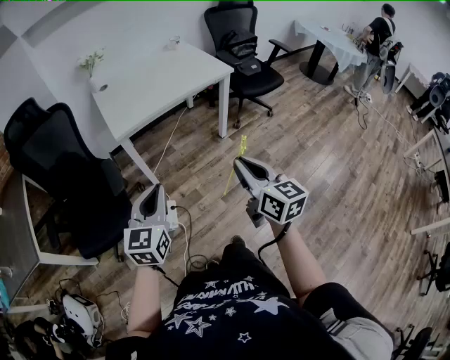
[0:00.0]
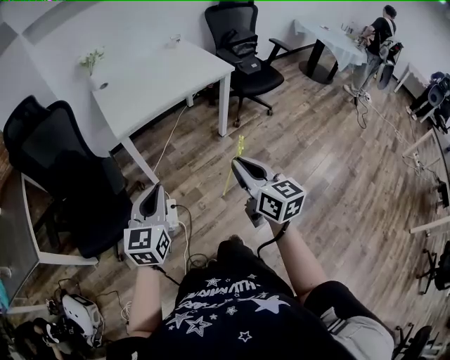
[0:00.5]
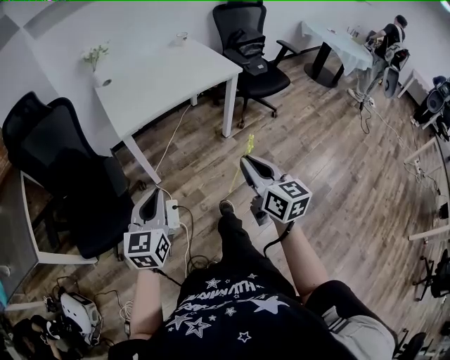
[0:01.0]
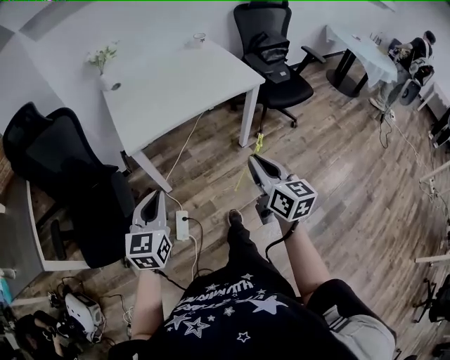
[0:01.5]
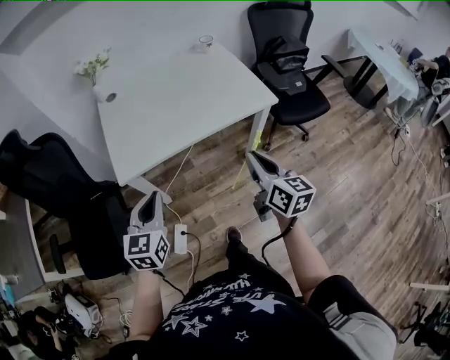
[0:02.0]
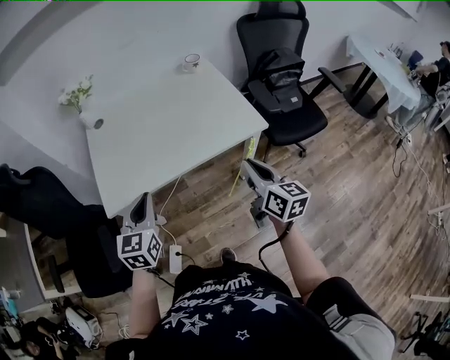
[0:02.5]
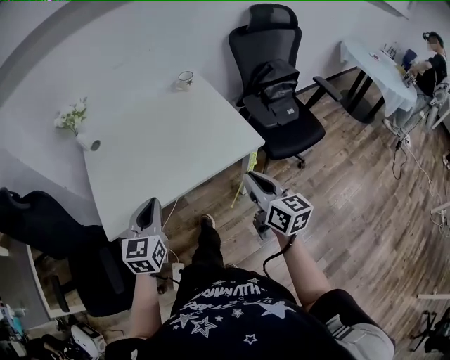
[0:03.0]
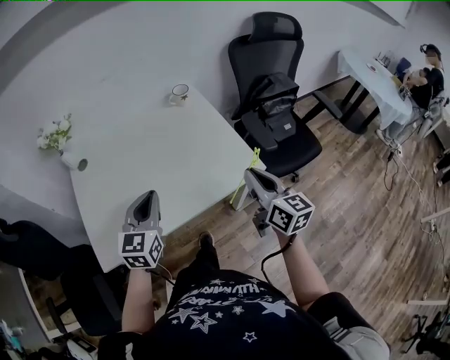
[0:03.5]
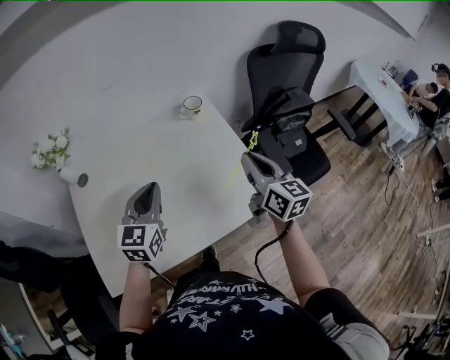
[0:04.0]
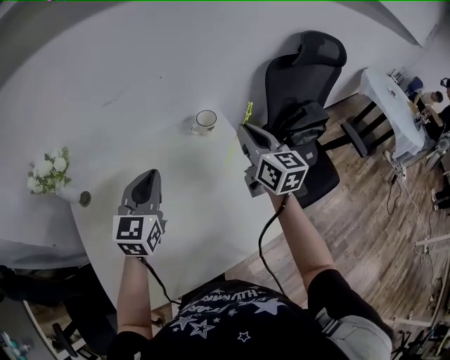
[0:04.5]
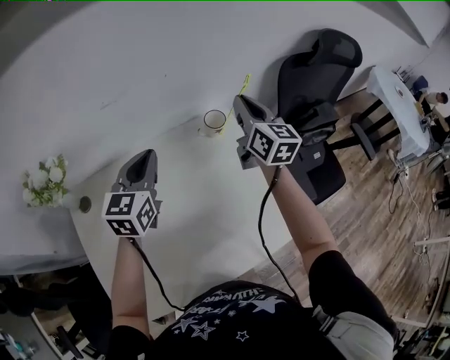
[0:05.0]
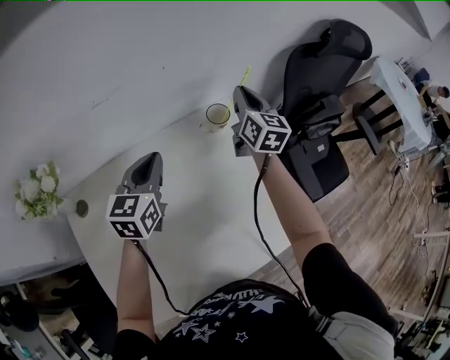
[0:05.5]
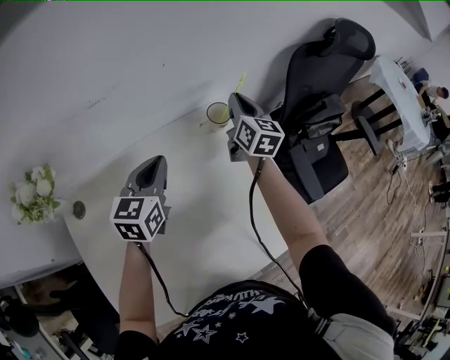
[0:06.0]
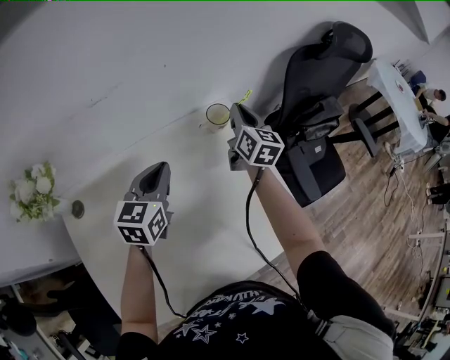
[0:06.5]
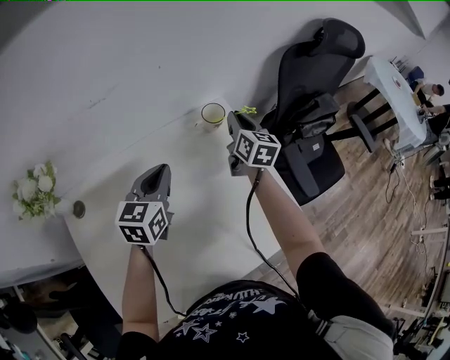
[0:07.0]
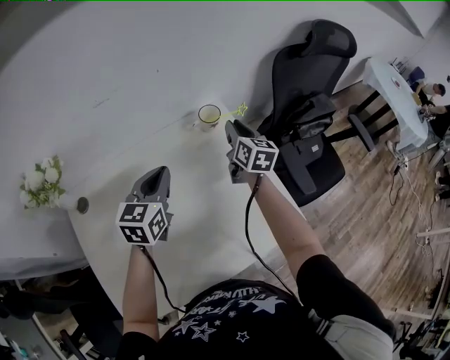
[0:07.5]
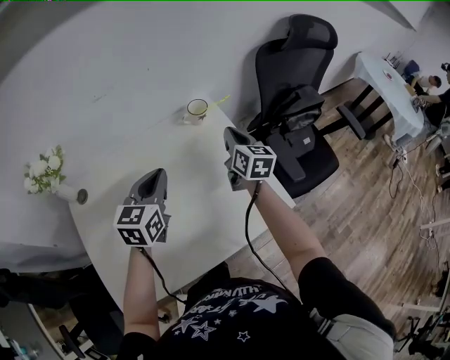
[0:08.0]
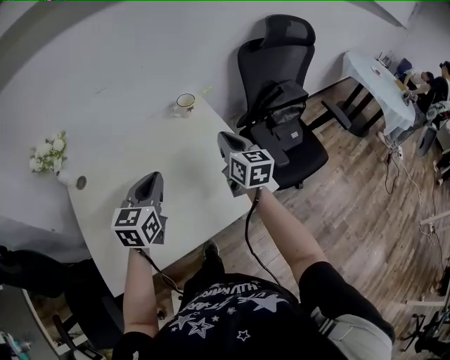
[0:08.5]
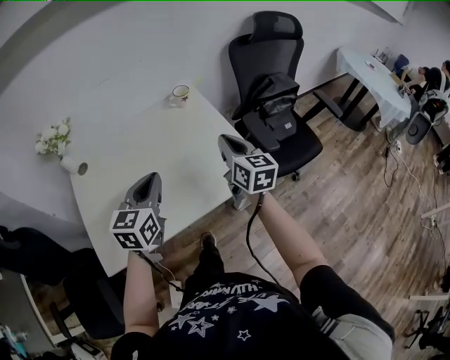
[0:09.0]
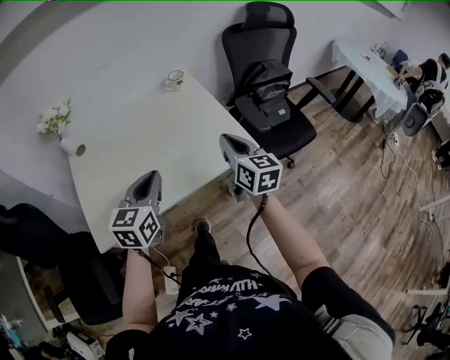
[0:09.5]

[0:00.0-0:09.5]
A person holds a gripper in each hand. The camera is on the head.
0:00.0 to 0:02.0: The two grippers go approximately 35 cm forward.
0:02.0 to 0:04.0: Both grippers are carried forward, some 40 cm.
0:04.0 to 0:05.5: Both grippers move forward, roughly 30 cm.
0:05.5 to 0:07.5: The right gripper moves backward and downward, approximately 10 cm; the left gripper is displaced backward by about 5 cm.
0:07.5 to 0:09.5: The grippers both shift backward by some 35 cm. The right gripper closes up.

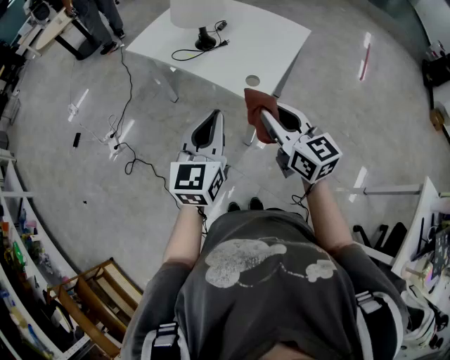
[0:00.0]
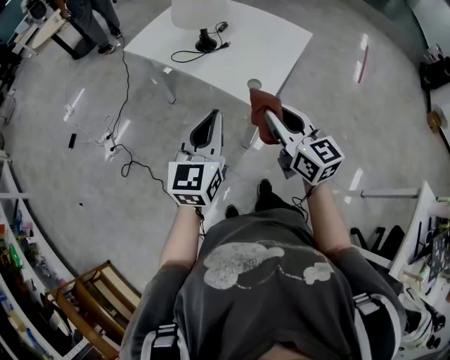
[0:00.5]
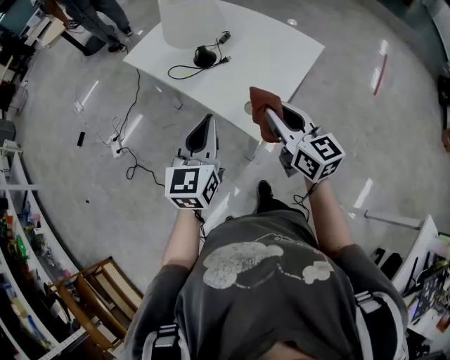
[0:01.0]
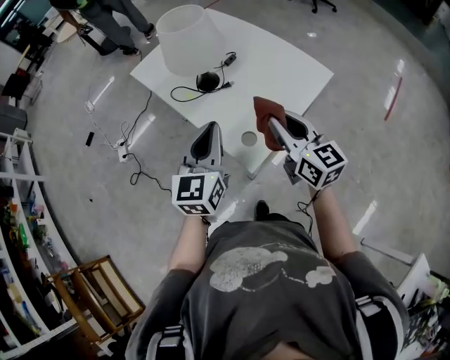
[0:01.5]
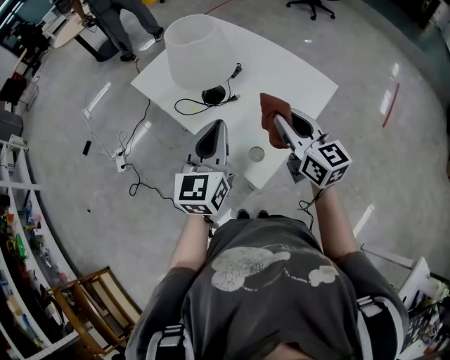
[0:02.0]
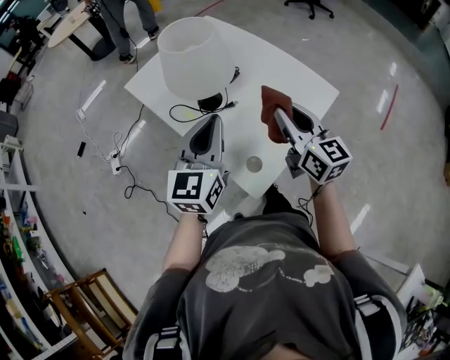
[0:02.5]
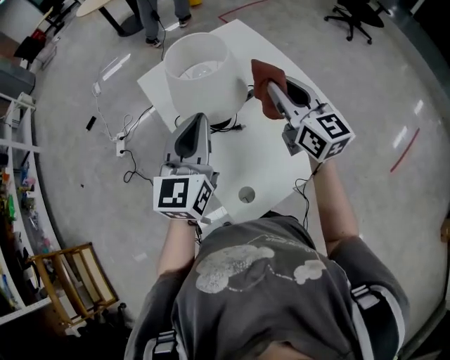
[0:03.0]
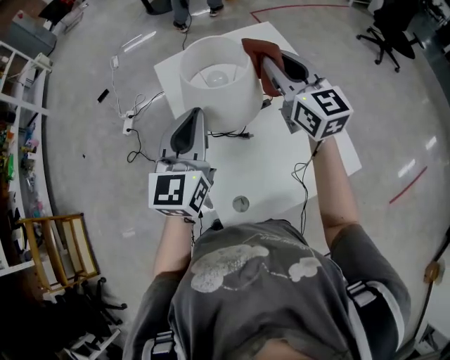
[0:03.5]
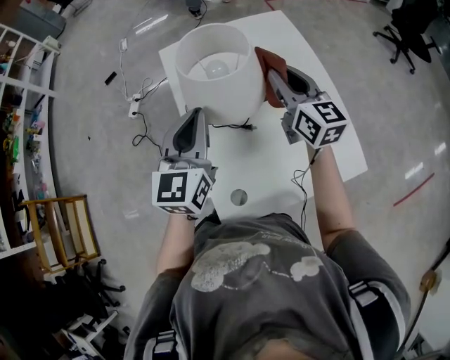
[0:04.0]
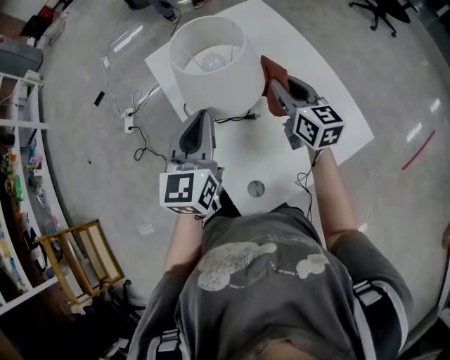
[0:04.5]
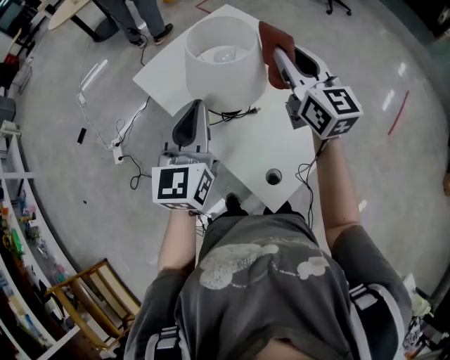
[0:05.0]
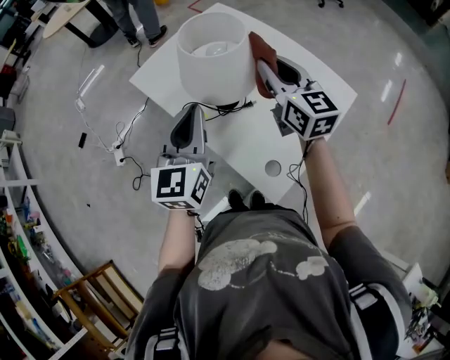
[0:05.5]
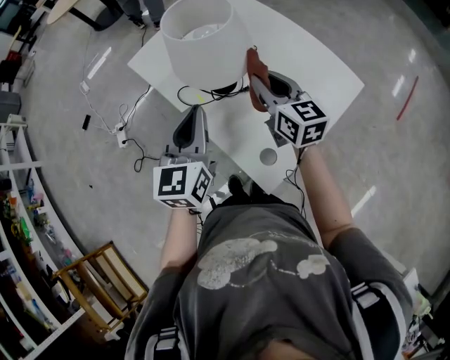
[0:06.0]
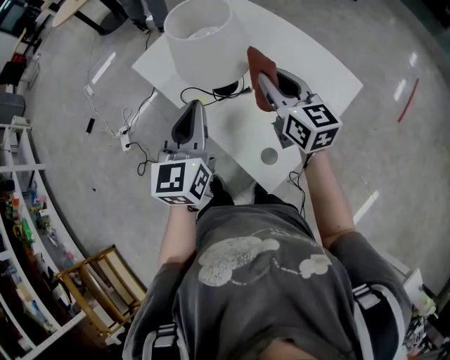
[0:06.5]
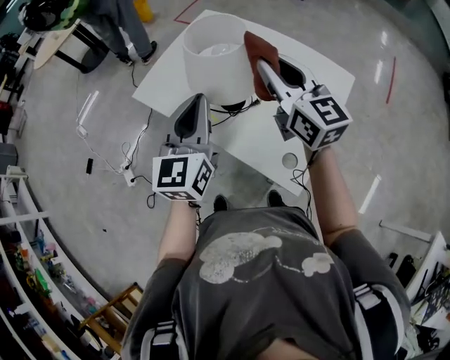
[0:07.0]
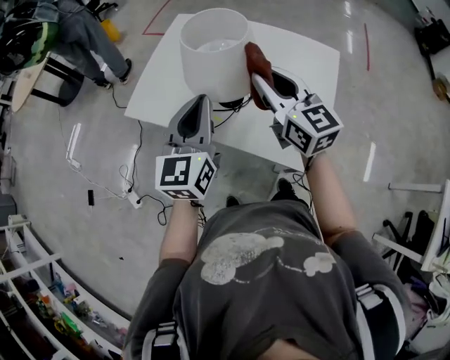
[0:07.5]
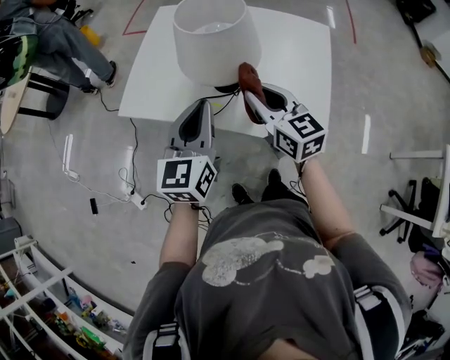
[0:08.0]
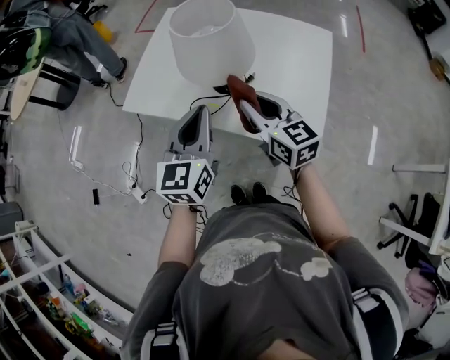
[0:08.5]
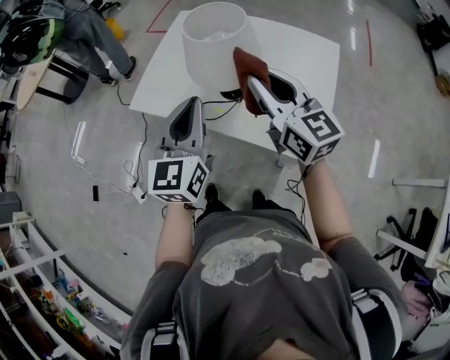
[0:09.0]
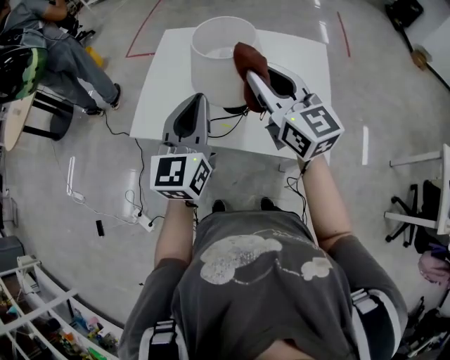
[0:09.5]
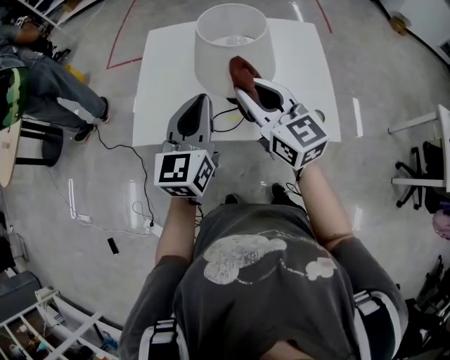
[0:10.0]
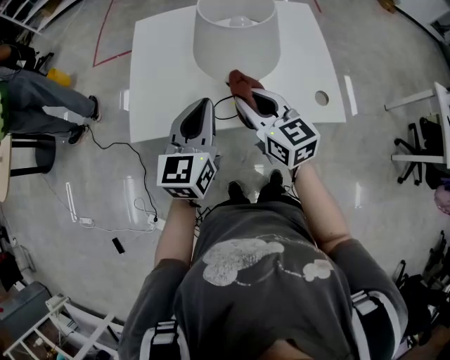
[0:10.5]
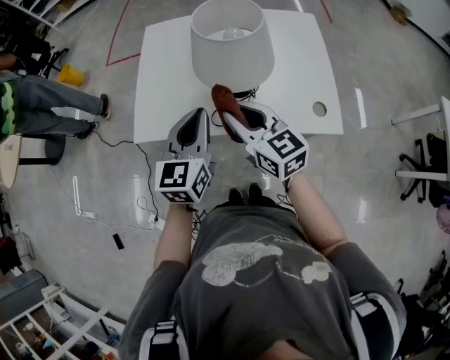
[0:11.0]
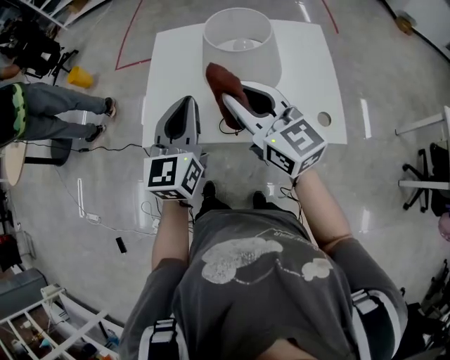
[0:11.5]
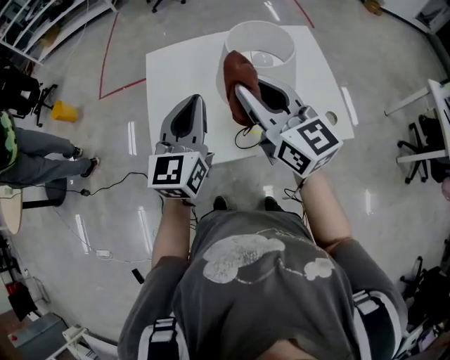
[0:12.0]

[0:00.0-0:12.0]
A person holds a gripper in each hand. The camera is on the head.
0:00.0 to 0:02.0: The right gripper moves forward and to the right, some 30 cm. Meanwhile the left gripper travels forward by approximately 25 cm.
0:02.0 to 0:04.0: The right gripper moves approximately 10 cm upward and comes back, and turns by some 20 degrees; the left gripper shifts by roughly 15 cm, and swivels approximately 30 degrees.
0:04.0 to 0:06.0: The left gripper shifts by roughly 5 cm, and changes its angle by some 20 degrees, while the right gripper goes up and down, approximately 15 cm each way, reversing 2 times, and turns by about 20 degrees.
0:06.0 to 0:08.0: The left gripper shifts by some 10 cm, and turns by about 30 degrees, while the right gripper moves some 10 cm upward and comes back, and swivels approximately 30 degrees.
0:08.0 to 0:10.0: The left gripper travels to the left and forward by roughly 10 cm, while the right gripper shifts some 10 cm to the left and upward.
0:10.0 to 0:12.0: The right gripper heads upward and to the left, covering about 10 cm. The left gripper travels forward and to the left by about 10 cm.

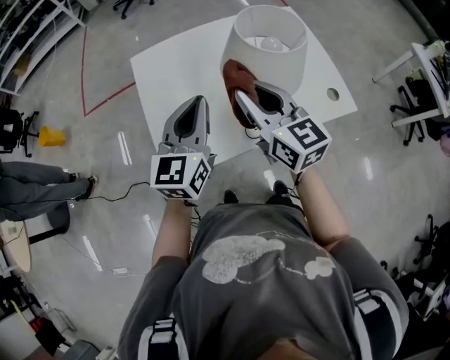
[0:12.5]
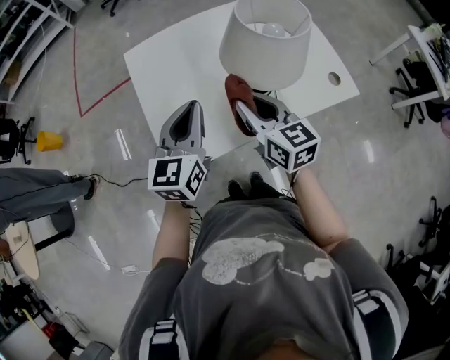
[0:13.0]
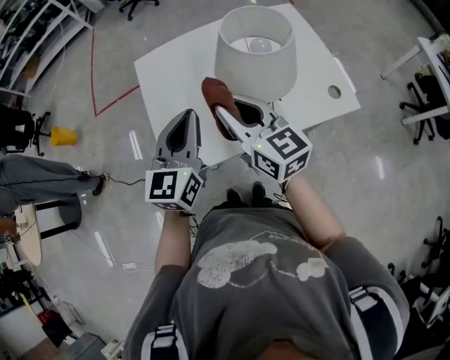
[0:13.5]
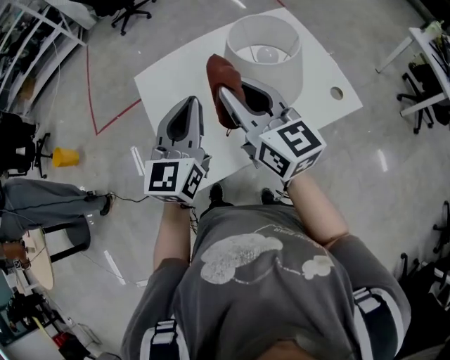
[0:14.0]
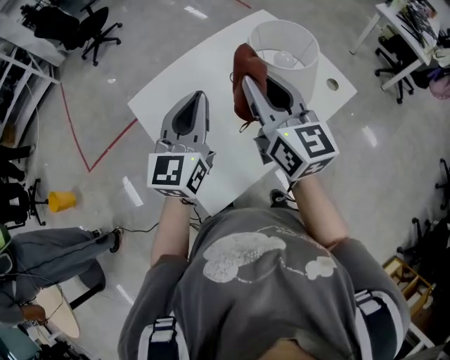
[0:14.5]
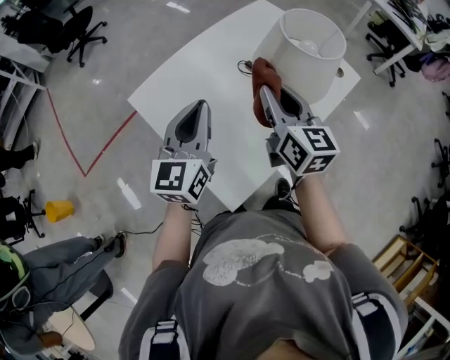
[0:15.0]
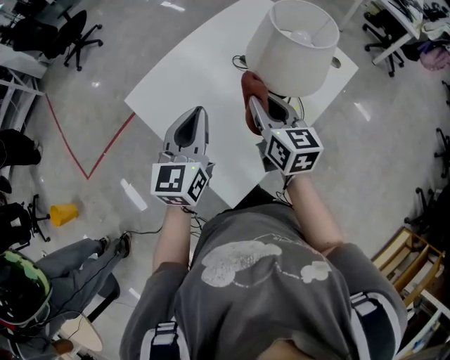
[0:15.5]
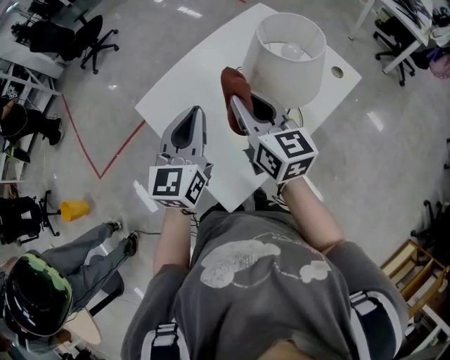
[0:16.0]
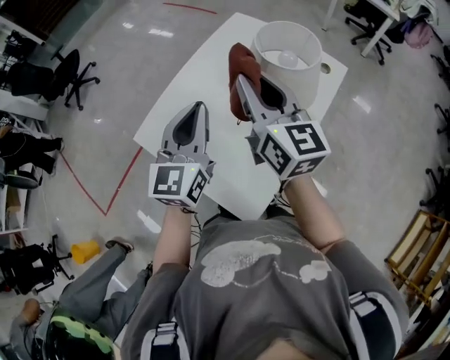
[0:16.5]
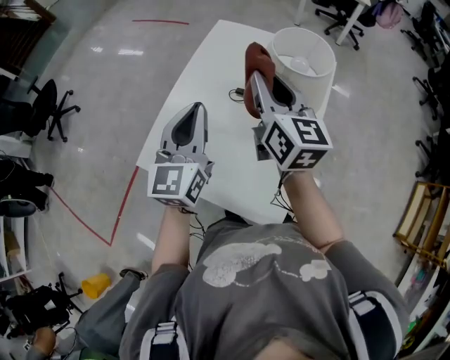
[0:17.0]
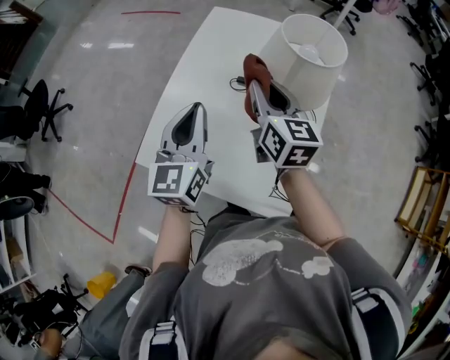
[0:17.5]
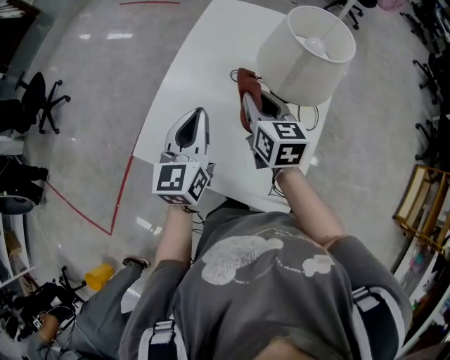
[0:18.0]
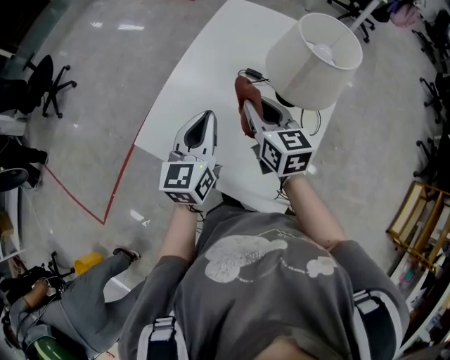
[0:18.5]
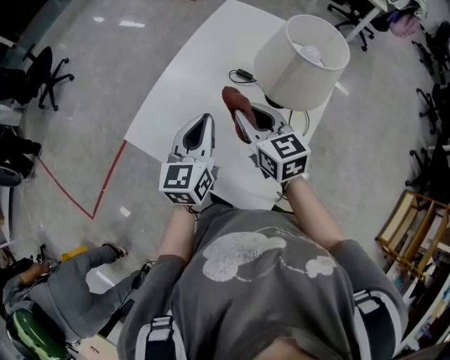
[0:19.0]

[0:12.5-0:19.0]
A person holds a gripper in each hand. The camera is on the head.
0:12.5 to 0:14.5: The left gripper moves roughly 10 cm, and swivels roughly 20 degrees. Meanwhile the right gripper travels upward by some 5 cm, and changes its angle by some 30 degrees.
0:14.5 to 0:17.0: The right gripper moves about 15 cm downward and comes back, and changes its angle by about 40 degrees; the left gripper goes downward and returns, approximately 5 cm each way, and turns by about 30 degrees.
0:17.0 to 0:19.0: The left gripper travels downward by roughly 10 cm, while the right gripper moves downward and backward, approximately 15 cm, and turns by about 30 degrees.
